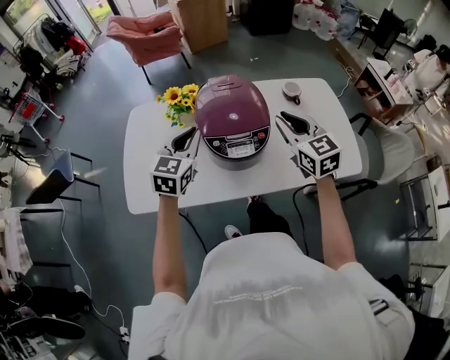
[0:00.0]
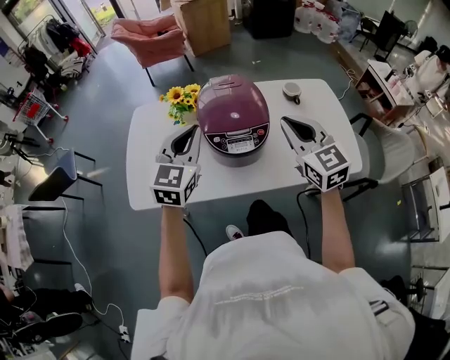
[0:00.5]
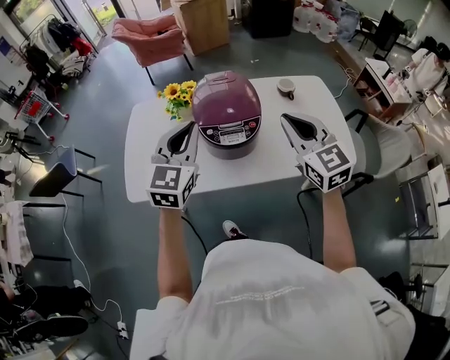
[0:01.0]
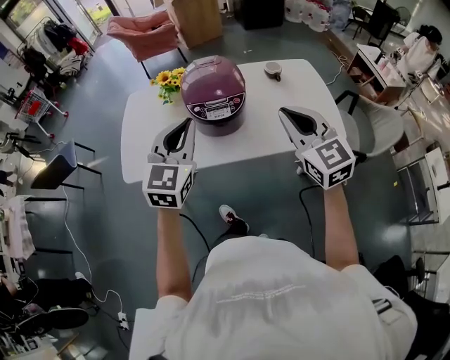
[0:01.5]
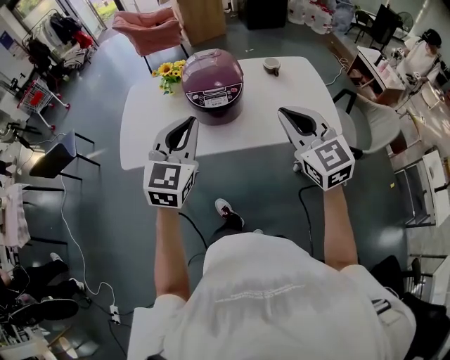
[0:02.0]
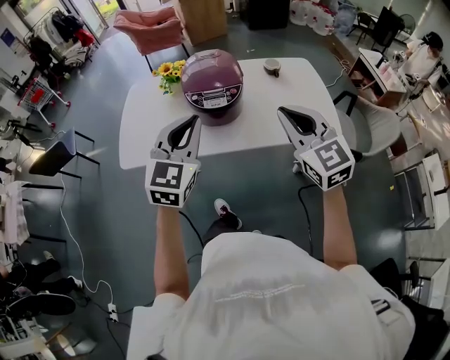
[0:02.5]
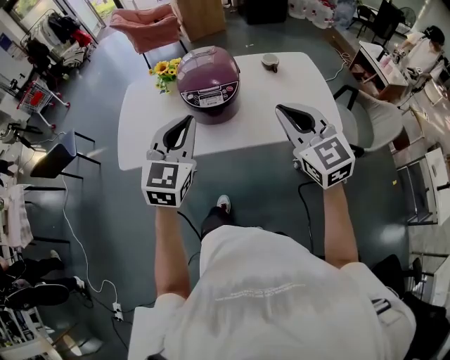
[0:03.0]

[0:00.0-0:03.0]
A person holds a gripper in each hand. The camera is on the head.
0:00.0 to 0:01.5: Both grippers travel together backward and upward, some 20 cm.
0:01.5 to 0:03.0: The left gripper moves approximately 5 cm.

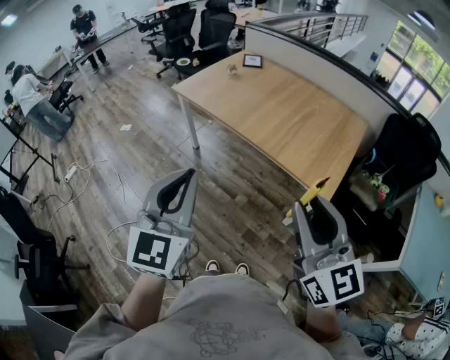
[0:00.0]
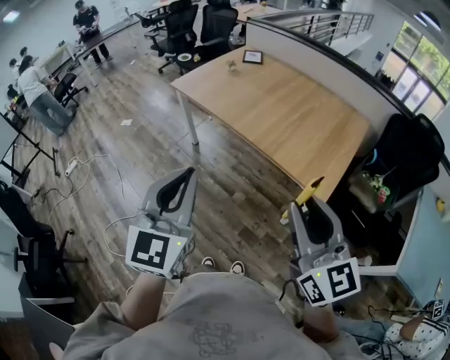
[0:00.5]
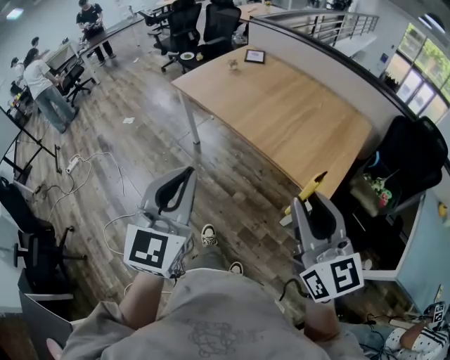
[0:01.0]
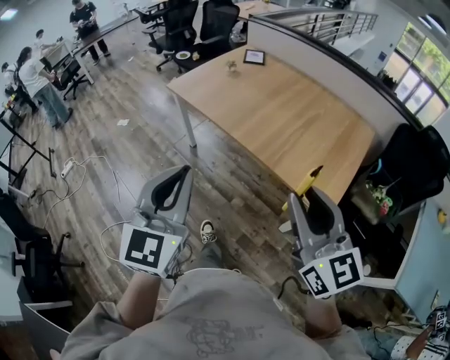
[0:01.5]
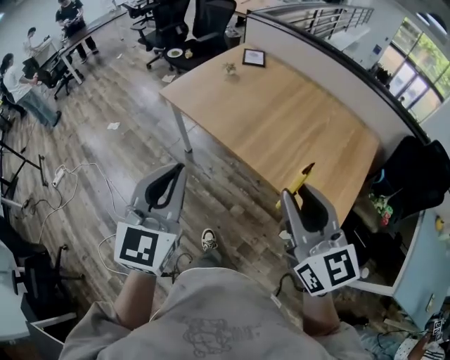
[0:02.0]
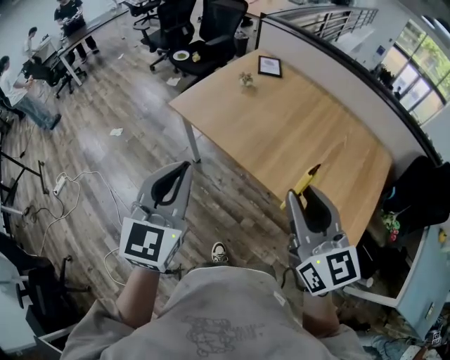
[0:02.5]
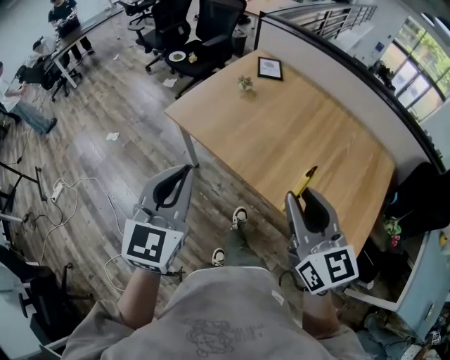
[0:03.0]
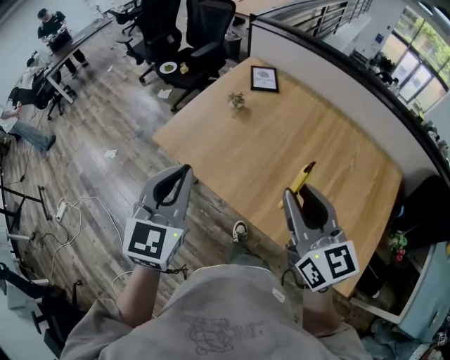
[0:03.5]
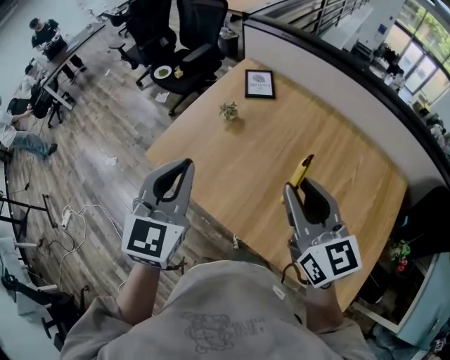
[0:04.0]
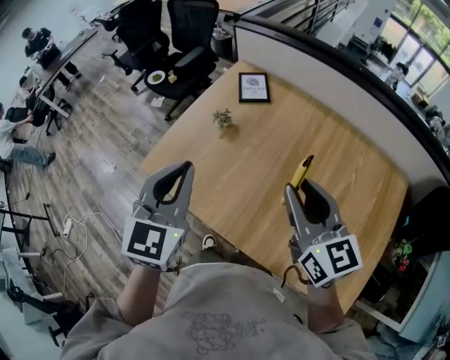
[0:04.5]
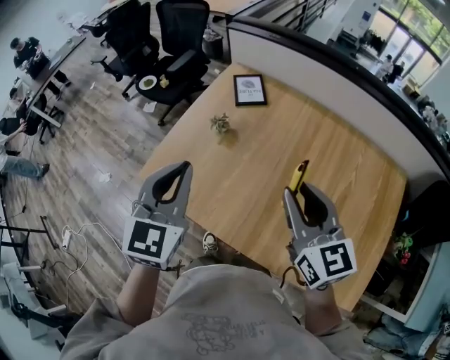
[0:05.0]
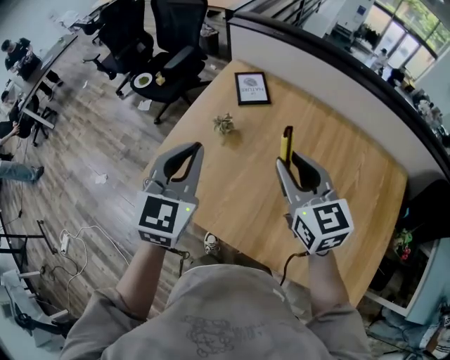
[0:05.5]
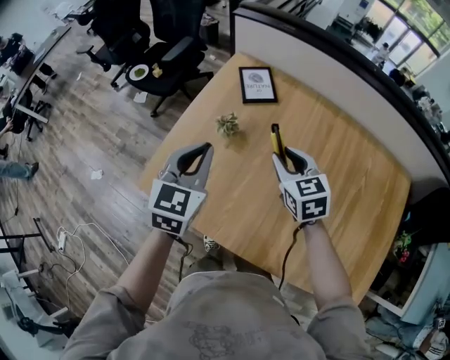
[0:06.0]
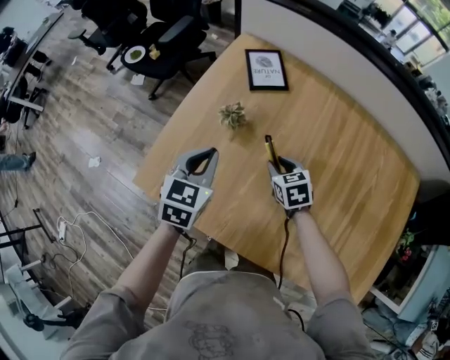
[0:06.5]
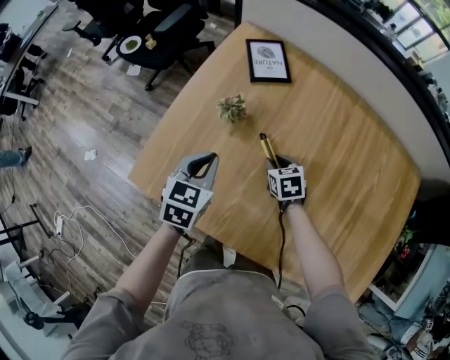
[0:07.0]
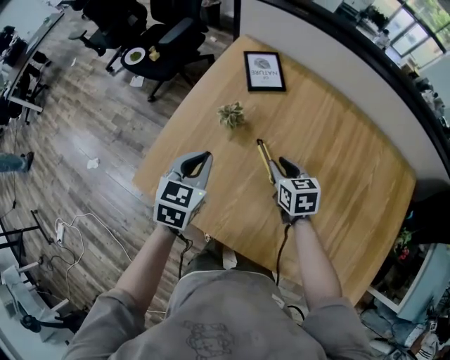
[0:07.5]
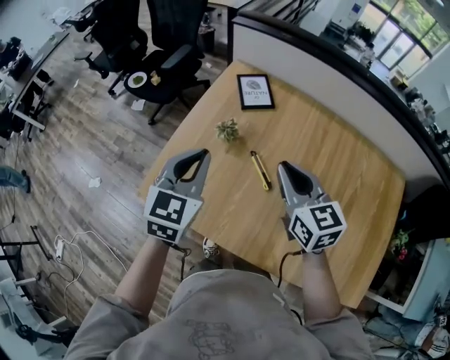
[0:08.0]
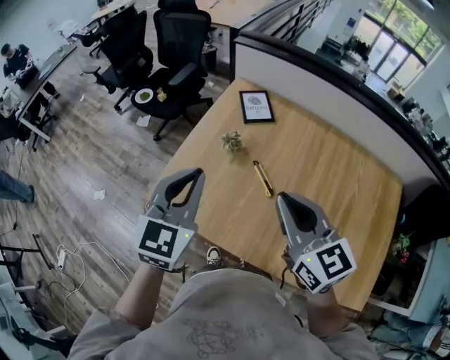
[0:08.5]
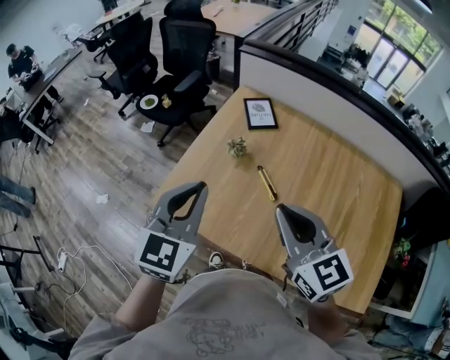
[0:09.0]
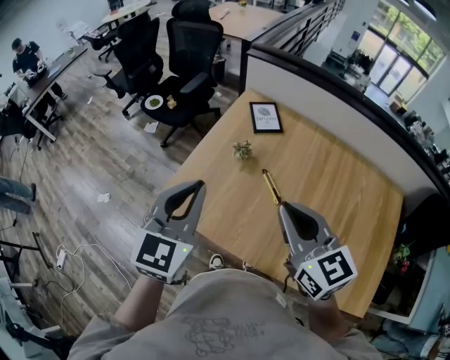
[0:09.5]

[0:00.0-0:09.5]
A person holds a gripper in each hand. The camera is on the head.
0:00.0 to 0:02.0: Both grippers move forward, roughly 25 cm.
0:02.0 to 0:04.0: The pair of grippers is taken forward, some 50 cm.
0:04.0 to 0:05.5: Both grippers travel together forward, some 15 cm.
0:05.5 to 0:07.5: Both grippers move downward, about 25 cm. The left gripper rotates some 20 degrees. Meanwhile the right gripper changes its angle by roughly 30 degrees.
0:07.5 to 0:09.5: The grippers both shift upward and backward by roughly 30 cm. The left gripper turns by some 30 degrees; the right gripper angles its fingers upward, by some 30 degrees, and closes.

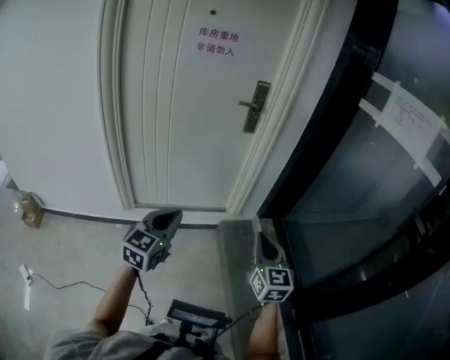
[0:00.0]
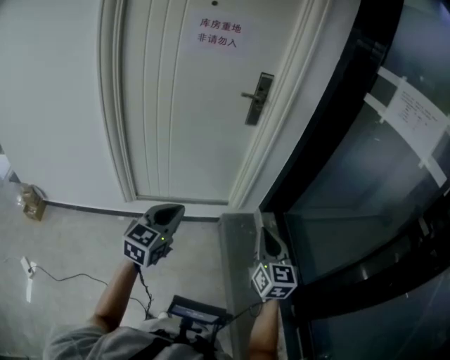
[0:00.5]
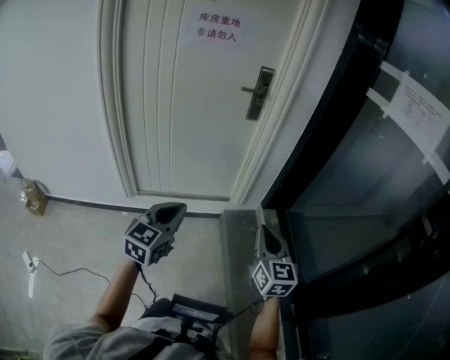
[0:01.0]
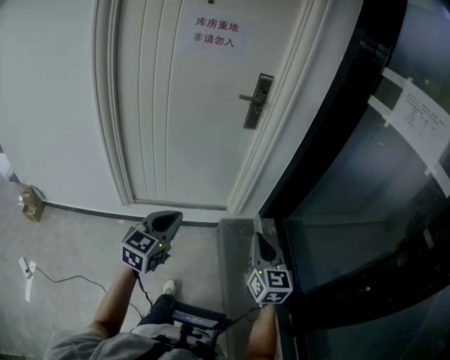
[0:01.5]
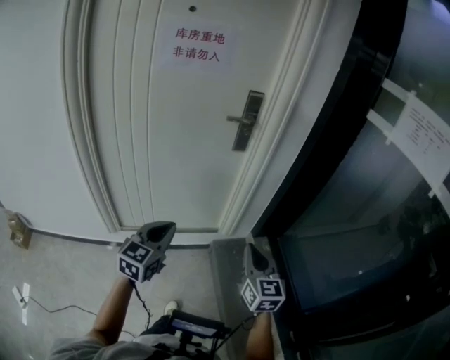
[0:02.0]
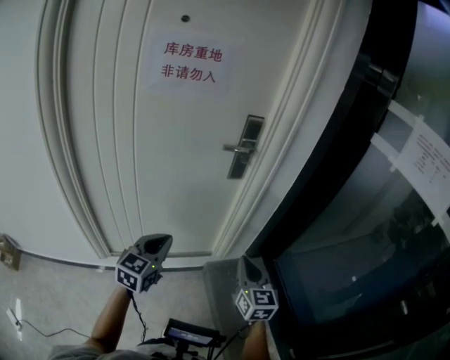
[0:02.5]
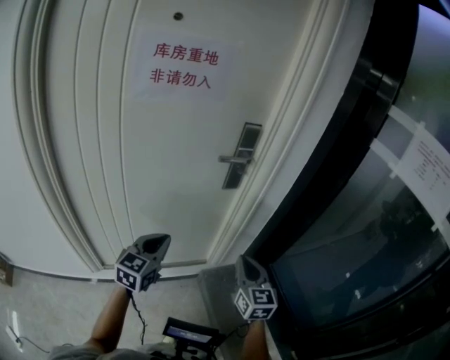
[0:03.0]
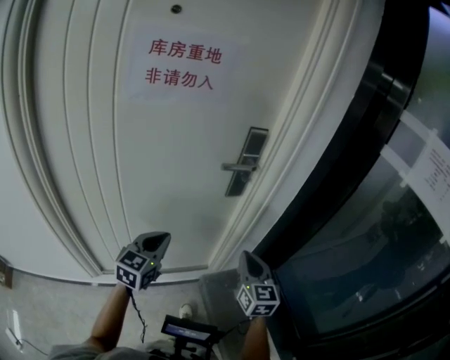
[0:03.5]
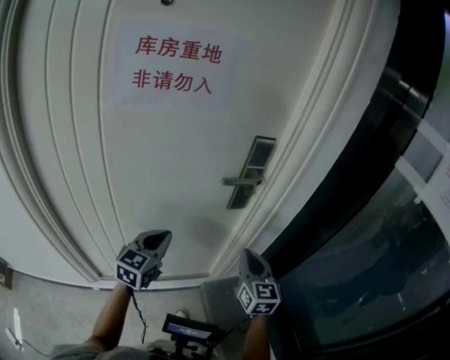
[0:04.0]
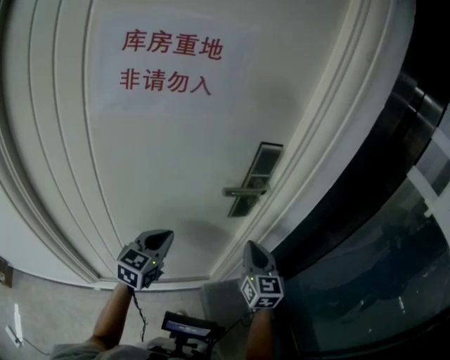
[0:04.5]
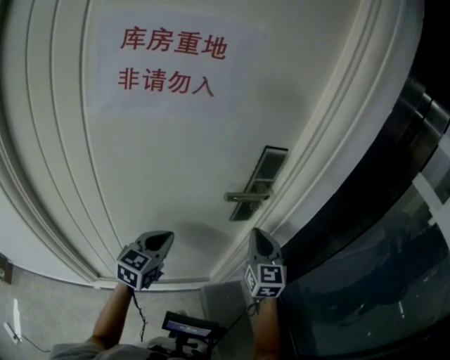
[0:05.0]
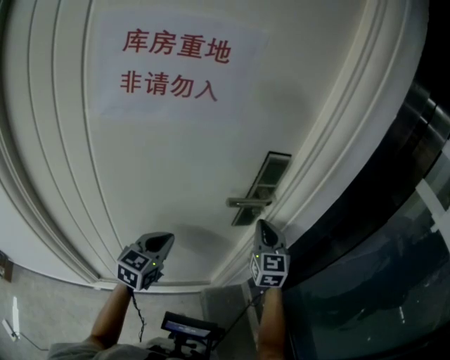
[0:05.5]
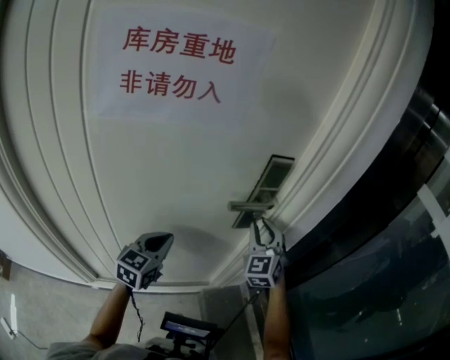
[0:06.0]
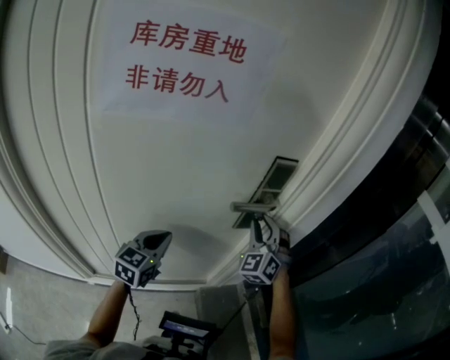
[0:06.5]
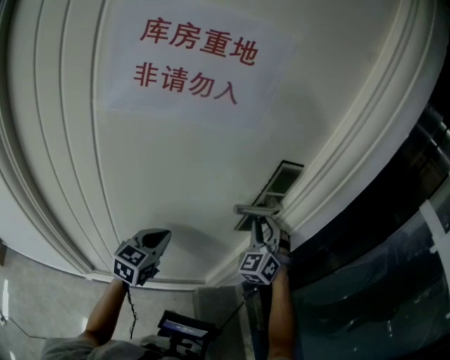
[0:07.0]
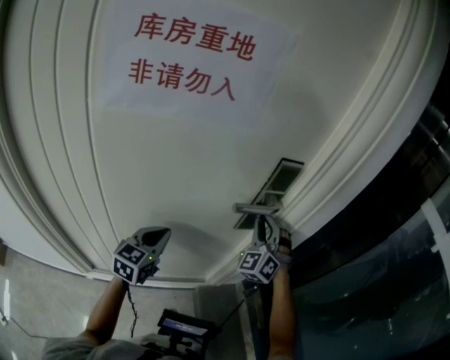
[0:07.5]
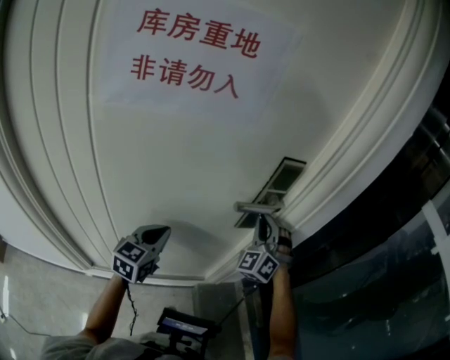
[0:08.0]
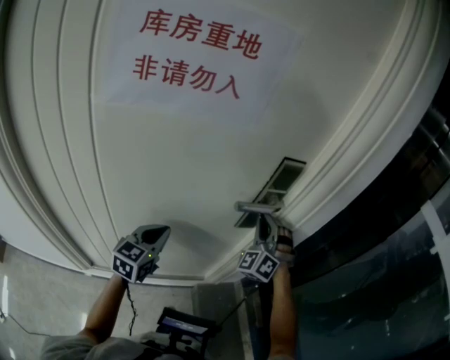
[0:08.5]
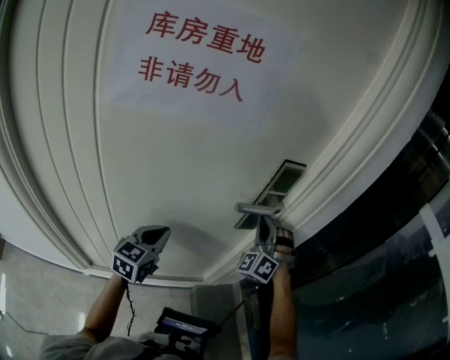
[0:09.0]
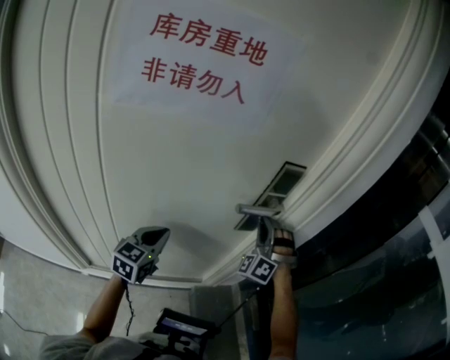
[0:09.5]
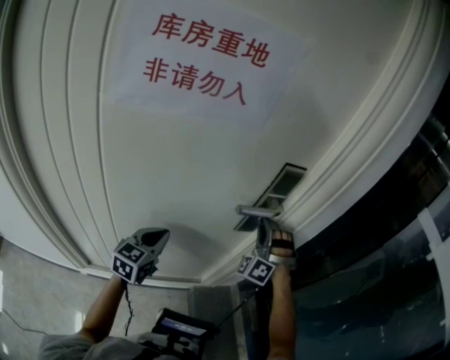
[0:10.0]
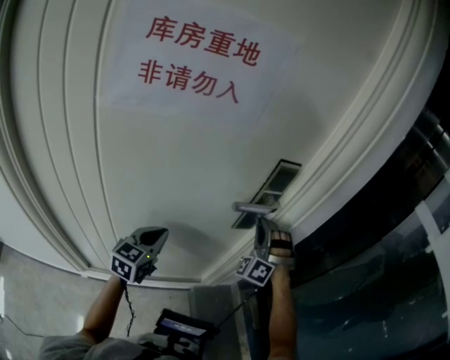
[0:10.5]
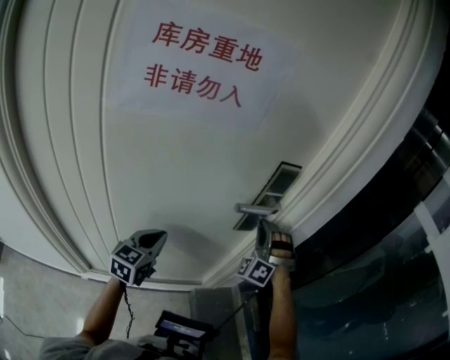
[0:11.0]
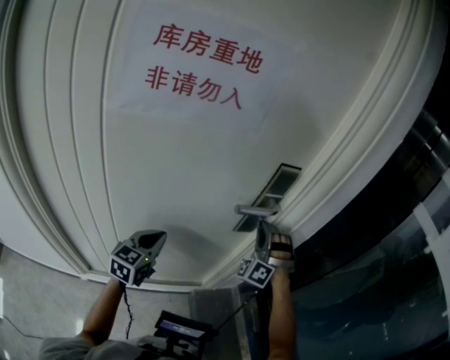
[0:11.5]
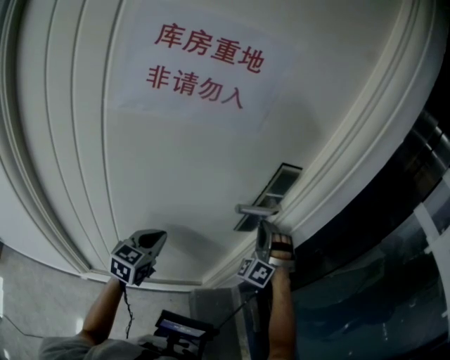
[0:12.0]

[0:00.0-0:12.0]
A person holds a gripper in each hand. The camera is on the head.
0:00.0 to 0:02.0: Both grippers travel together forward, about 15 cm.
0:02.0 to 0:04.0: The two grippers go approximately 35 cm forward.
0:04.0 to 0:06.0: The left gripper travels forward by some 10 cm, while the right gripper goes roughly 15 cm forward, and turns by about 40 degrees.
0:06.0 to 0:08.0: The right gripper changes its angle by about 30 degrees.
0:08.0 to 0:10.0: The right gripper swivels some 20 degrees.
0:10.0 to 0:12.0: There are only small adjustments of the grippers.

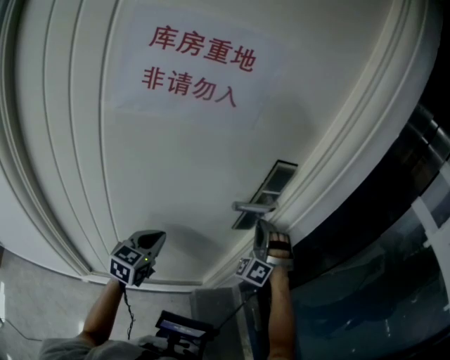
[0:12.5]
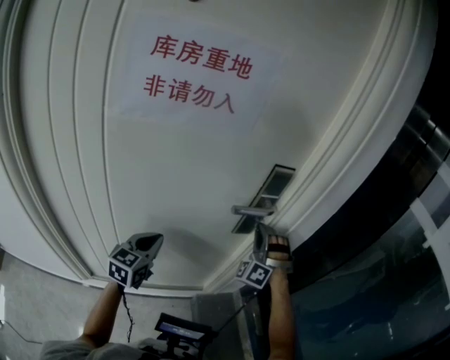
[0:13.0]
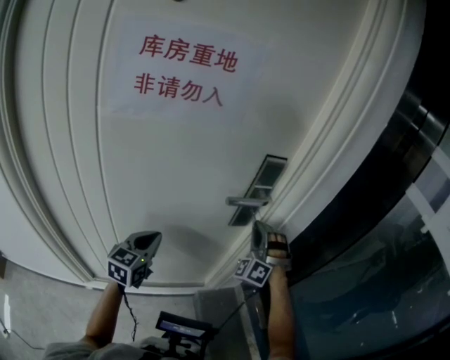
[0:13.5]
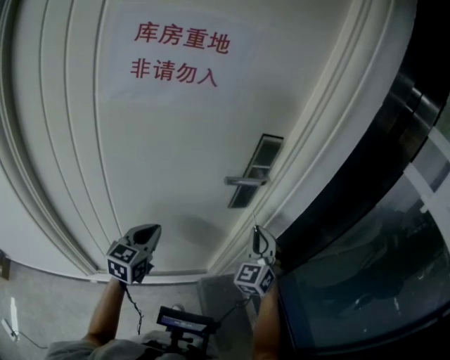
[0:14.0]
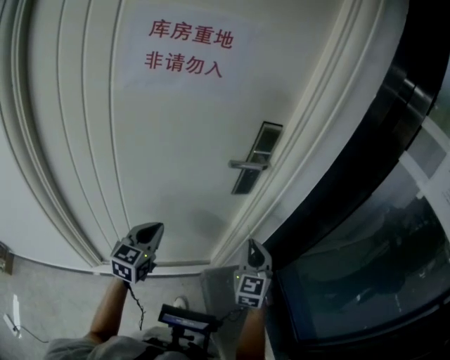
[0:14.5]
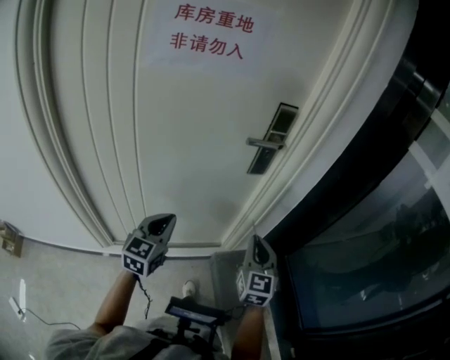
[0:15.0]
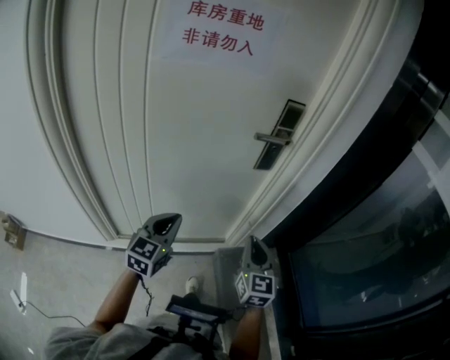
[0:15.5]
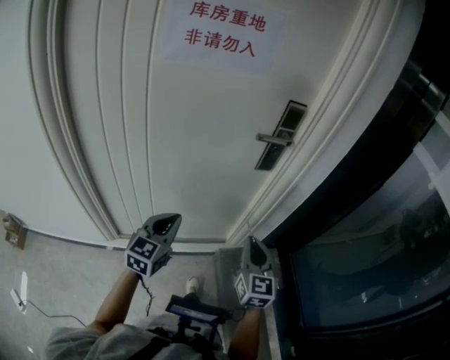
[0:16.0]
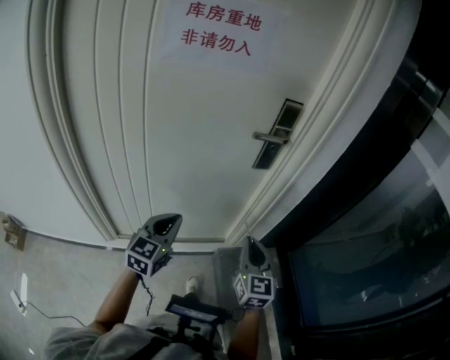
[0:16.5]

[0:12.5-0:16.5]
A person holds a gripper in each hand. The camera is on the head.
0:12.5 to 0:14.5: The right gripper heads backward, covering approximately 20 cm, and rolls clockwise, seen from behind, by approximately 70 degrees, while the left gripper travels backward by approximately 10 cm.
0:14.5 to 0:16.5: Both grippers travel together backward, roughly 10 cm.
